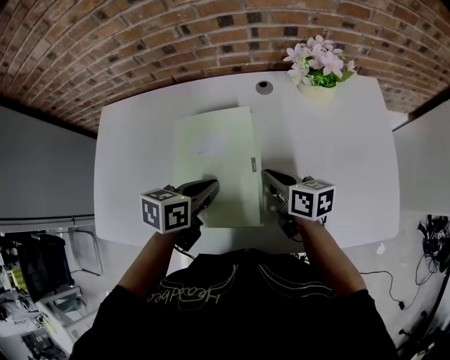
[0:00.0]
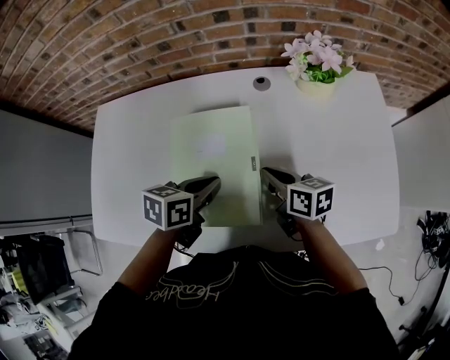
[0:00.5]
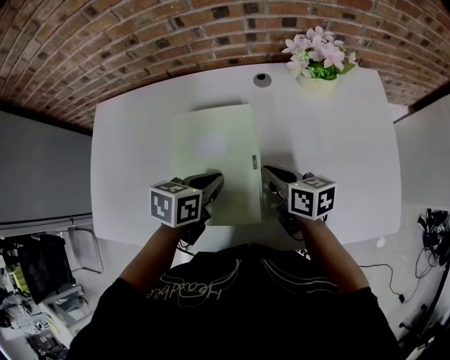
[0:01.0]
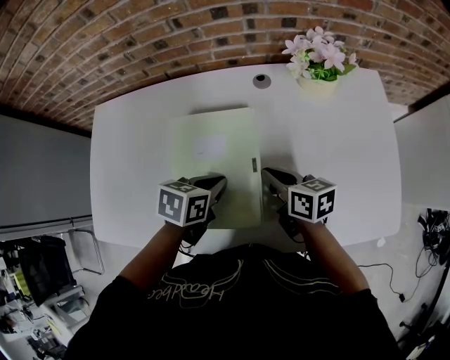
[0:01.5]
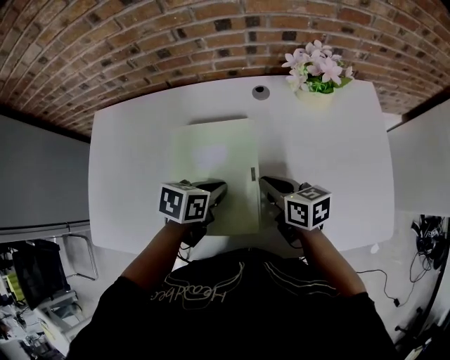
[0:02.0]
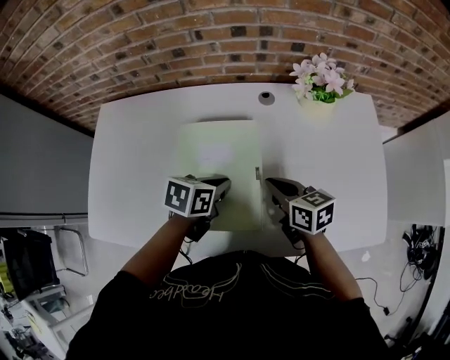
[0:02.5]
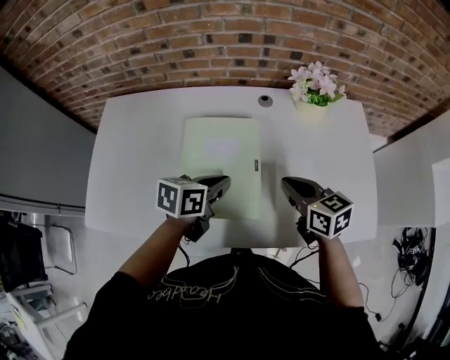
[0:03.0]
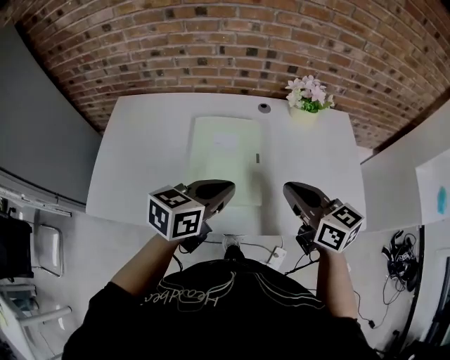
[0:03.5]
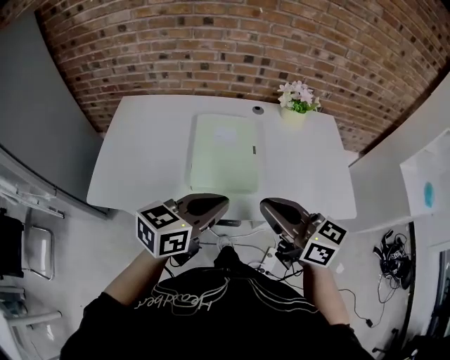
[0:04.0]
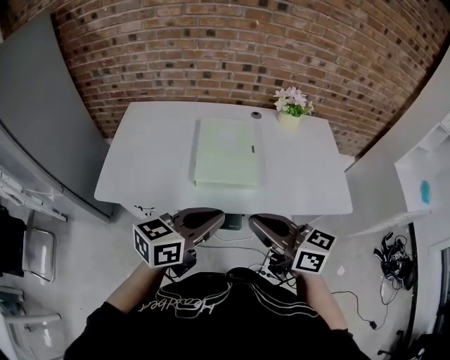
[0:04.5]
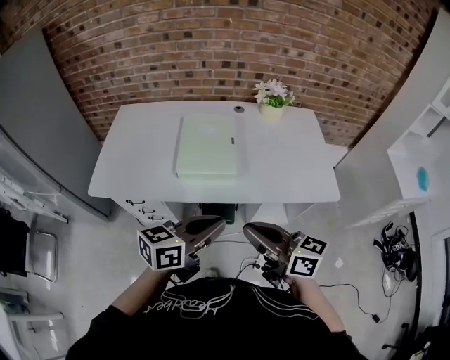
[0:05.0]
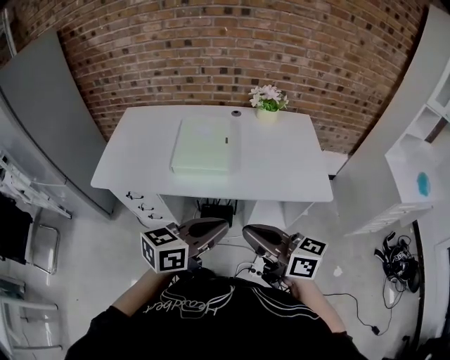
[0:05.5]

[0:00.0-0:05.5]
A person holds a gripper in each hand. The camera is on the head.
0:00.0 to 0:02.0: The grippers stay close to where they were, moving slightly.
0:02.0 to 0:03.5: The two grippers go about 20 cm upward and backward. The left gripper rotates some 30 degrees, while the right gripper rotates roughly 30 degrees.
0:03.5 to 0:05.5: Both grippers travel together backward, about 30 cm. The right gripper turns by roughly 20 degrees.

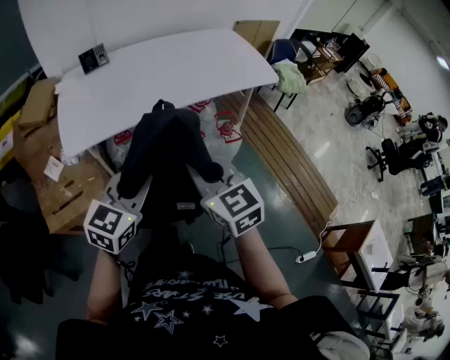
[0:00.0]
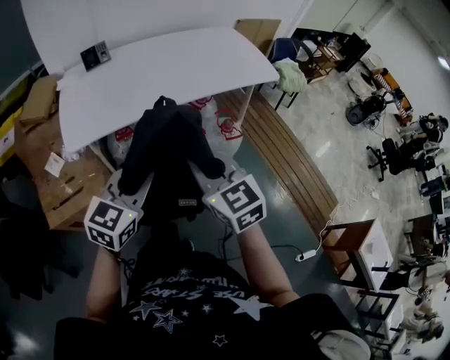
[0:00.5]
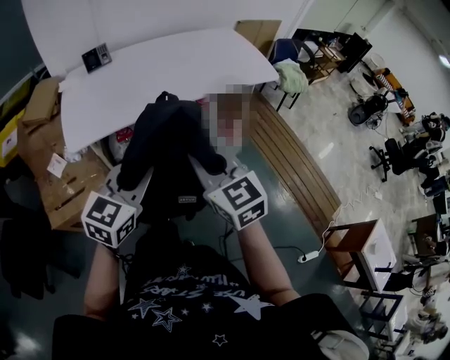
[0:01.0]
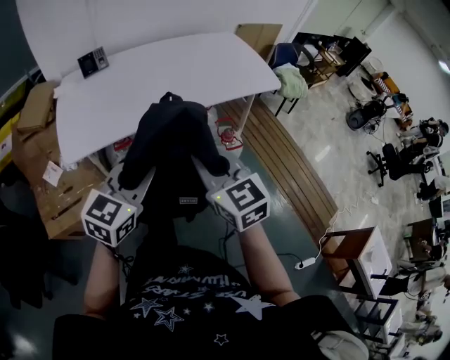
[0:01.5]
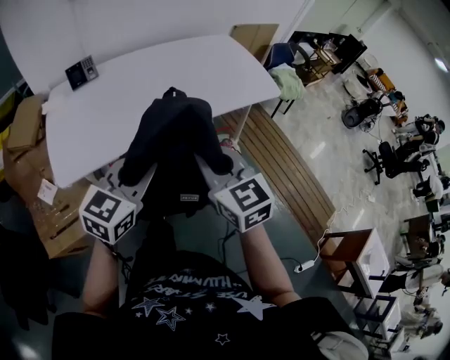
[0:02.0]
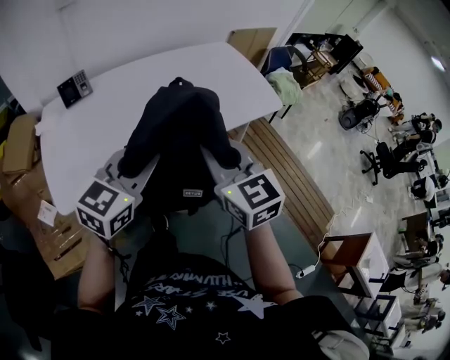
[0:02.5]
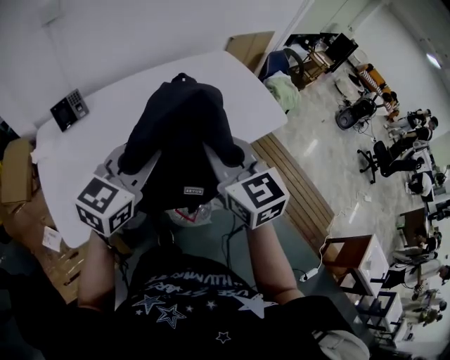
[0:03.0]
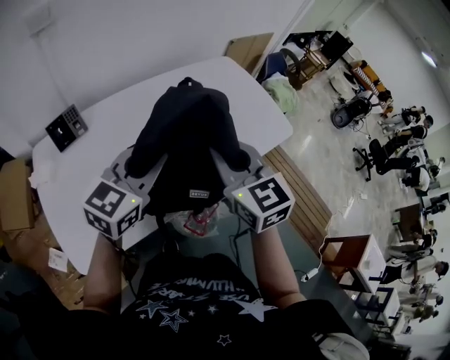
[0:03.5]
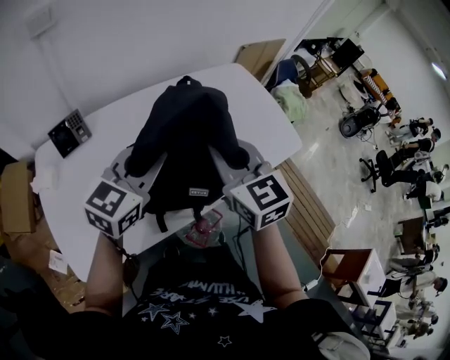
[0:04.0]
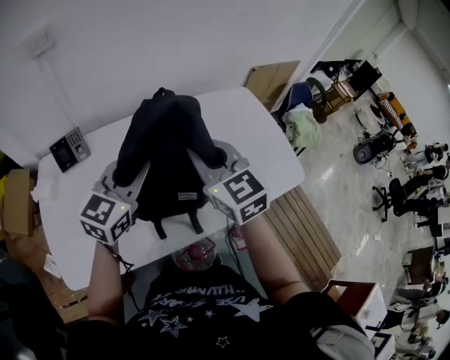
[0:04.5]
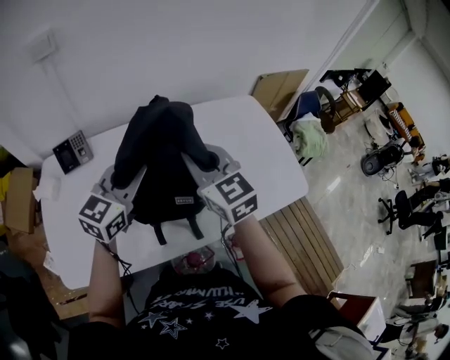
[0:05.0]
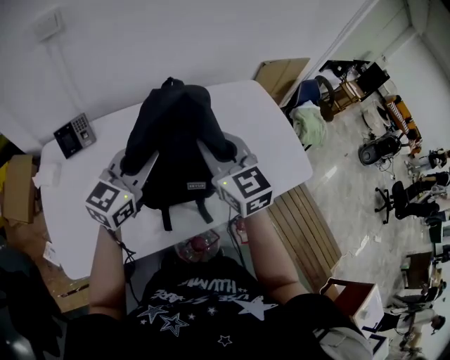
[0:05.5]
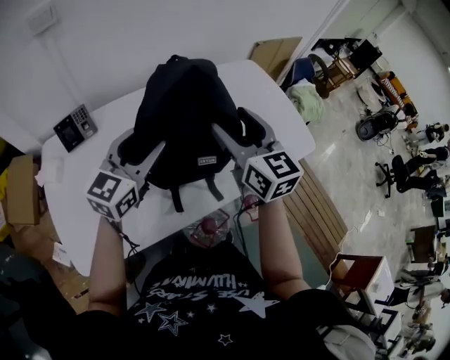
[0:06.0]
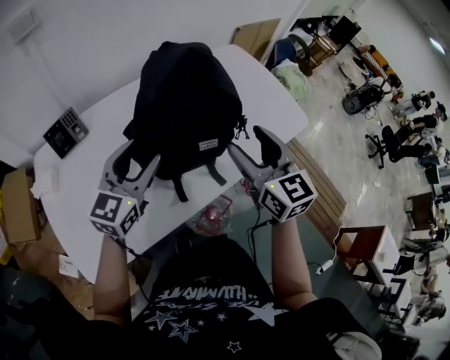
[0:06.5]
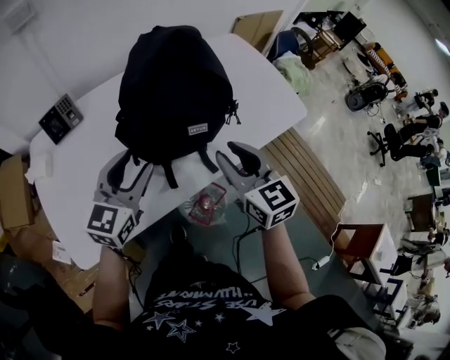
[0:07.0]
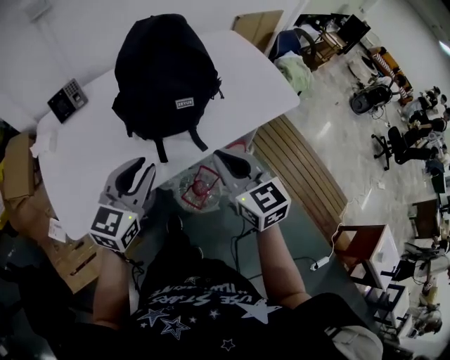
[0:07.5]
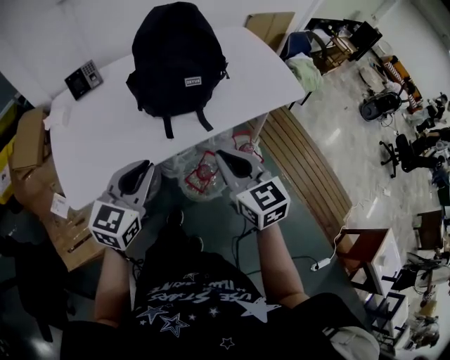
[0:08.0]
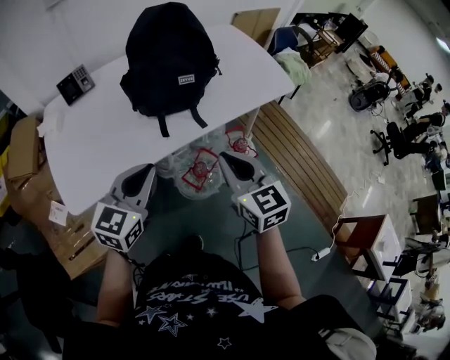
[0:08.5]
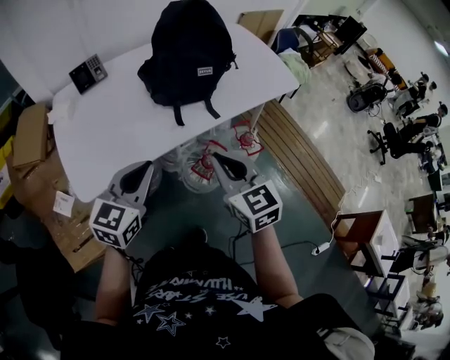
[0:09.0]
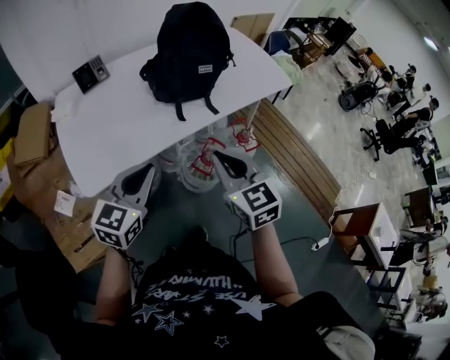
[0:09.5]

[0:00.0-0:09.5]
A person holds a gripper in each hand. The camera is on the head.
0:00.0 to 0:02.0: The grippers both shift forward by about 15 cm.
0:02.0 to 0:04.0: The two grippers go about 35 cm forward.
0:04.0 to 0:05.5: The grippers both shift forward by roughly 10 cm.
0:05.5 to 0:07.5: The two grippers go about 25 cm backward. The right gripper opens, then closes again. The left gripper opens, then closes once more.
0:07.5 to 0:09.5: The two grippers go some 20 cm backward and to the left. The left gripper closes its fingers.

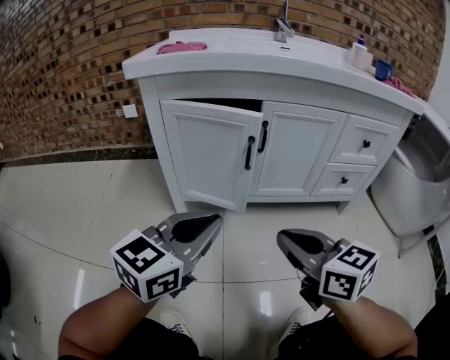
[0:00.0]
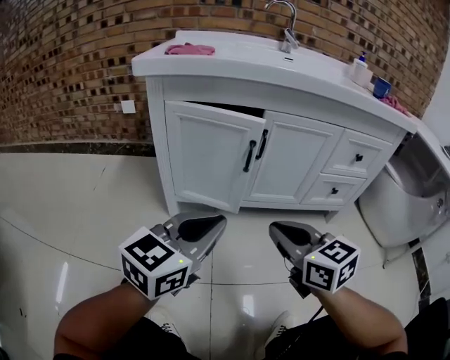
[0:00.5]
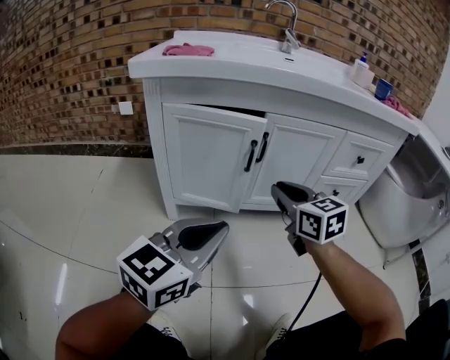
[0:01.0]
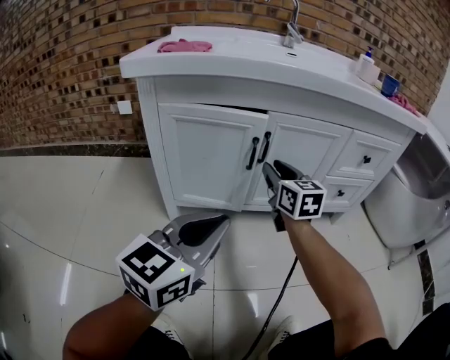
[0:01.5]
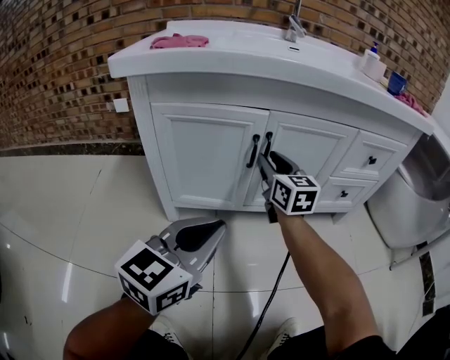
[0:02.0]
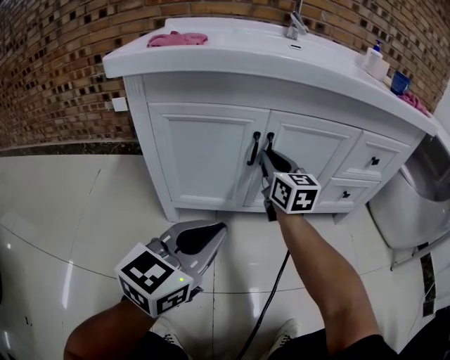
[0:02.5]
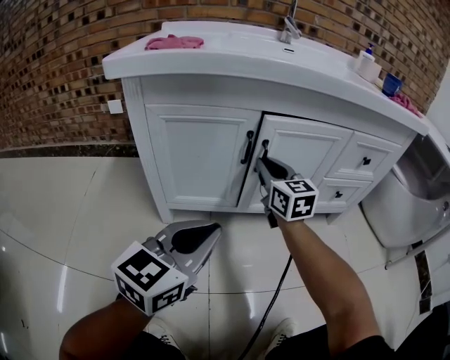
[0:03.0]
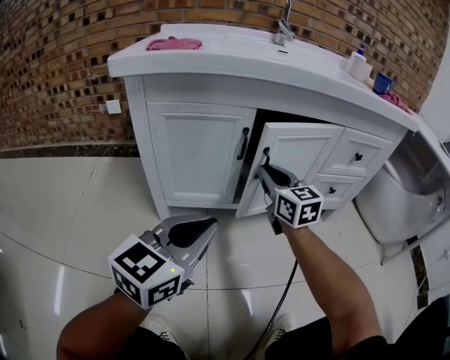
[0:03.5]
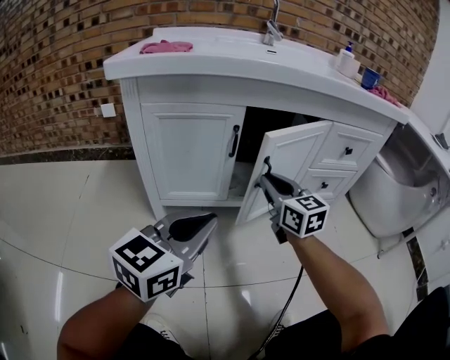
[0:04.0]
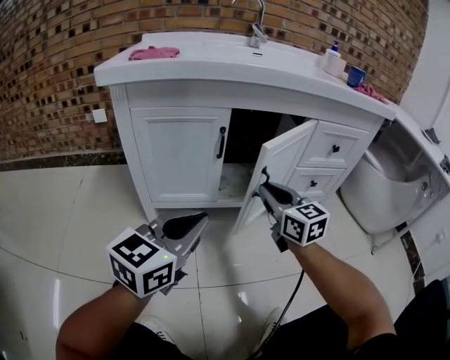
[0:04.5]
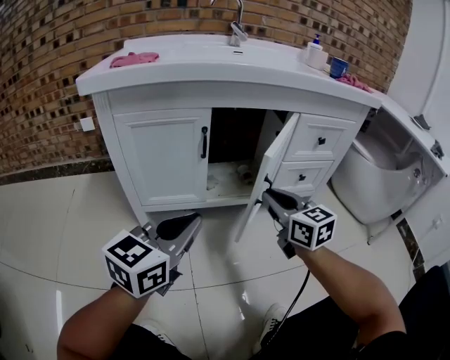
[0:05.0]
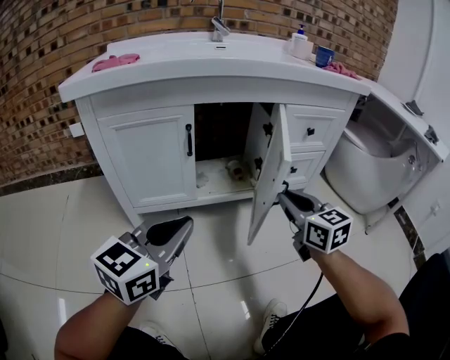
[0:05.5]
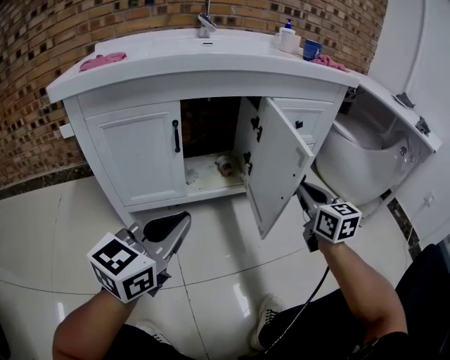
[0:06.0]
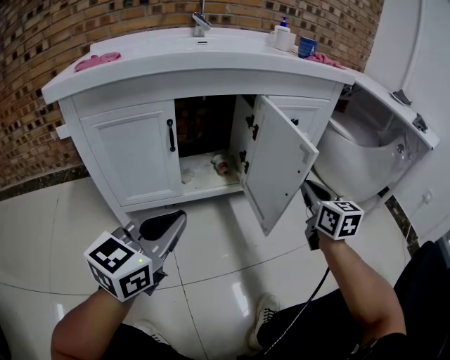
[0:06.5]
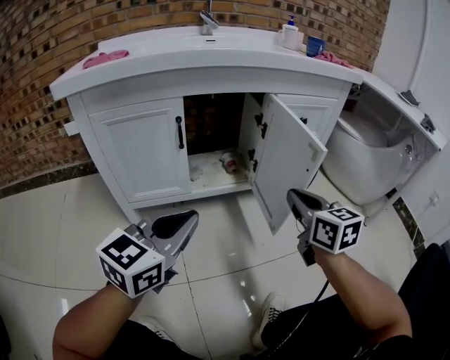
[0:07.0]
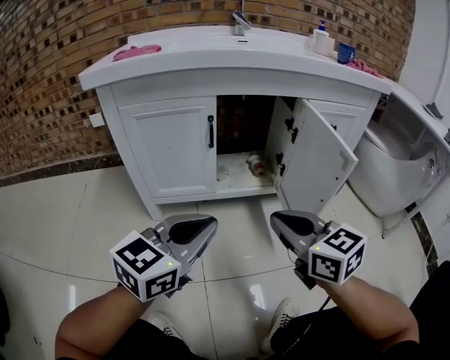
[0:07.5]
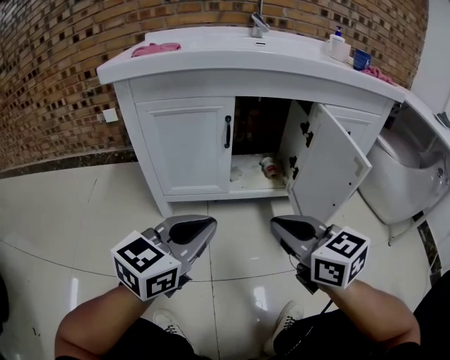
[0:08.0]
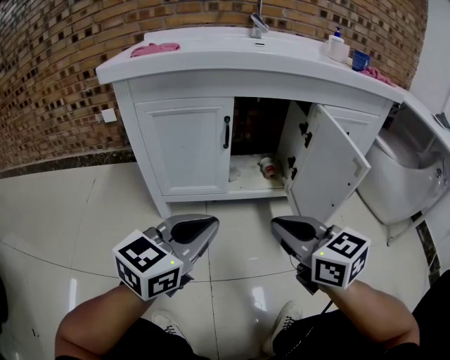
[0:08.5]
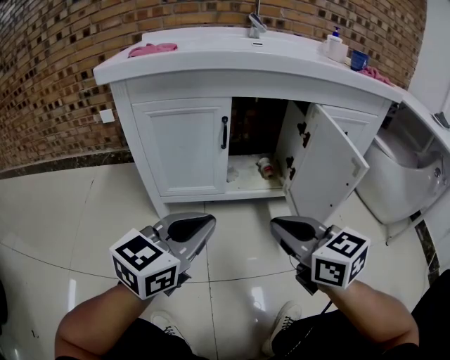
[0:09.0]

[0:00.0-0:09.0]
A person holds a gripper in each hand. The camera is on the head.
0:00.0 to 0:02.0: The left gripper is displaced forward by roughly 5 cm. Meanwhile the right gripper shifts about 30 cm forward, turns by approximately 30 degrees, and opens.
0:02.0 to 0:04.5: The right gripper shifts some 15 cm backward and to the right, and closes.
0:04.5 to 0:07.0: The left gripper travels to the right by about 5 cm; the right gripper heads to the right, covering approximately 15 cm.
0:07.0 to 0:09.0: The right gripper moves to the left and backward, about 15 cm, and changes its angle by some 30 degrees.

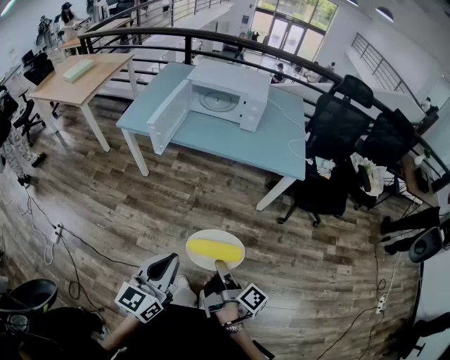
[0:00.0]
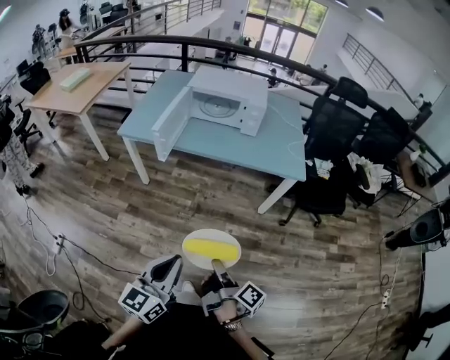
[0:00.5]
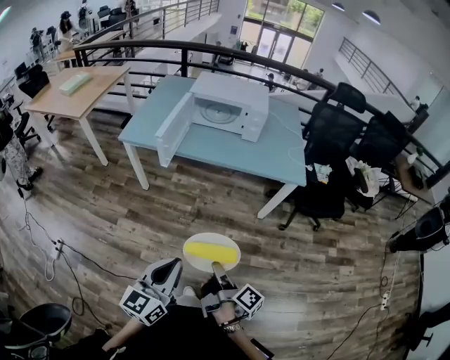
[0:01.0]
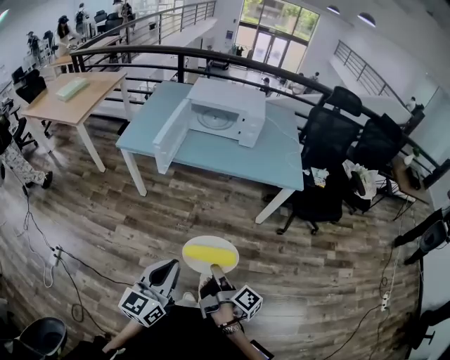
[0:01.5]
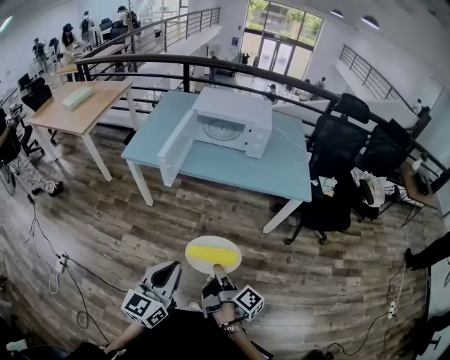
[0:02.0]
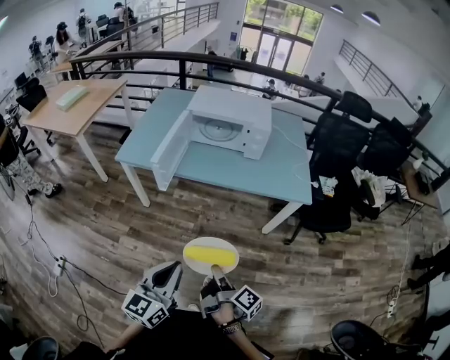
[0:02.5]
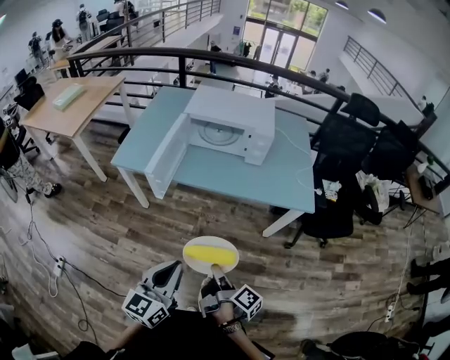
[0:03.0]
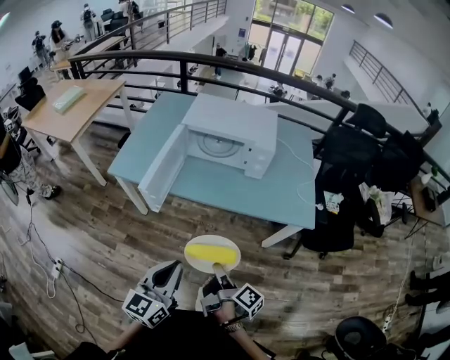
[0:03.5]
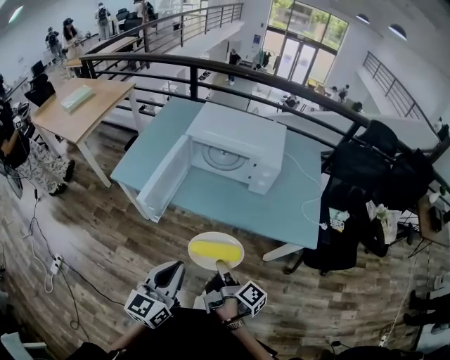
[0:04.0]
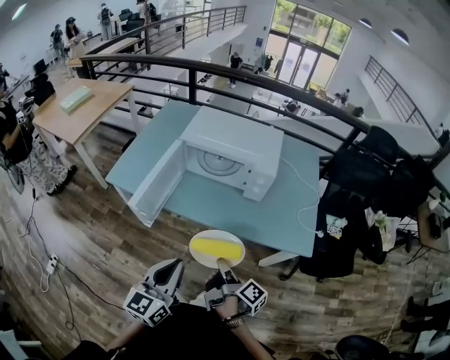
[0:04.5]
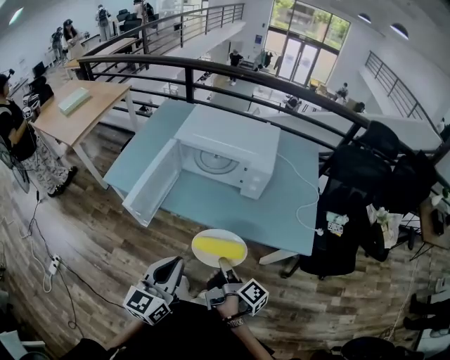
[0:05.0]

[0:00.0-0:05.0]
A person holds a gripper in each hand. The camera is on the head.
0:00.0 to 0:02.5: The left gripper changes place by roughly 10 cm.
0:02.5 to 0:05.0: The left gripper shifts by some 25 cm.
